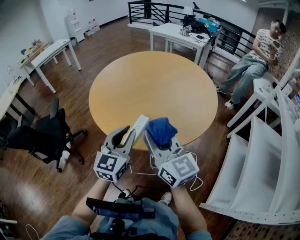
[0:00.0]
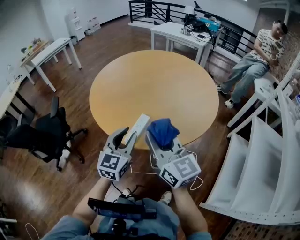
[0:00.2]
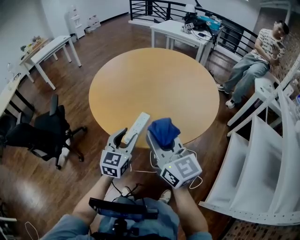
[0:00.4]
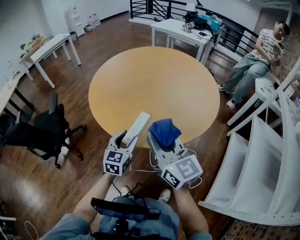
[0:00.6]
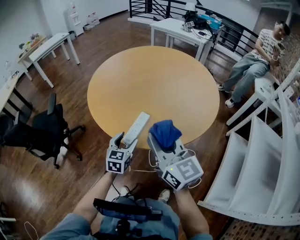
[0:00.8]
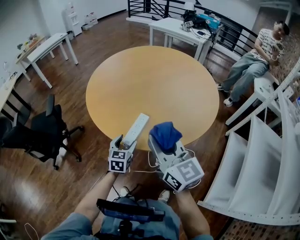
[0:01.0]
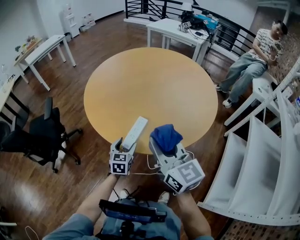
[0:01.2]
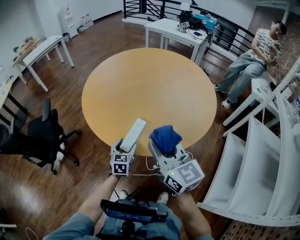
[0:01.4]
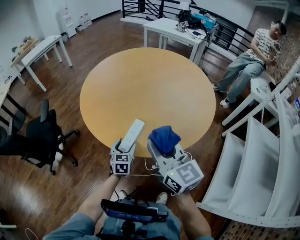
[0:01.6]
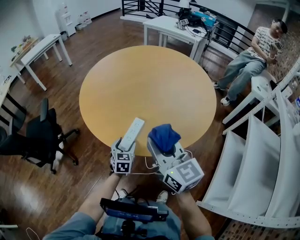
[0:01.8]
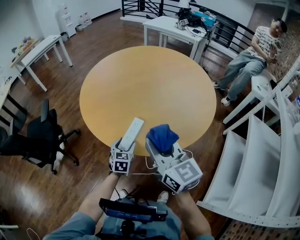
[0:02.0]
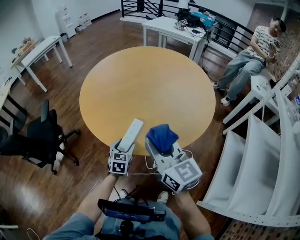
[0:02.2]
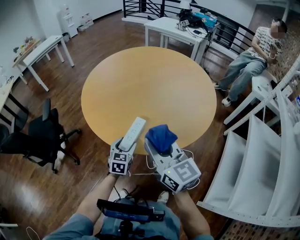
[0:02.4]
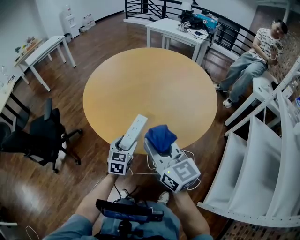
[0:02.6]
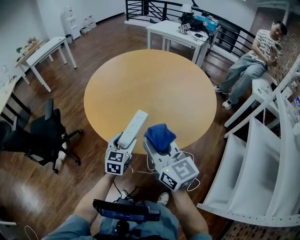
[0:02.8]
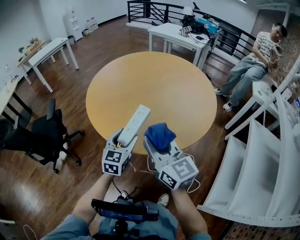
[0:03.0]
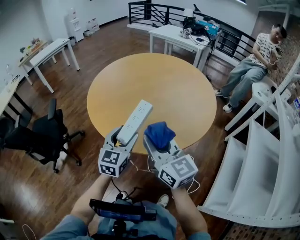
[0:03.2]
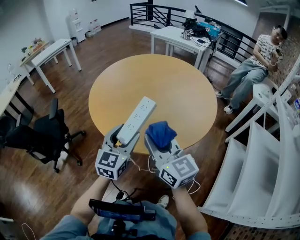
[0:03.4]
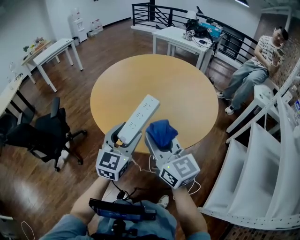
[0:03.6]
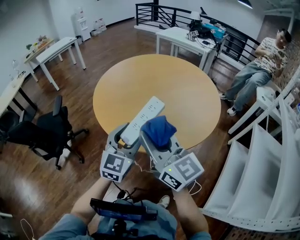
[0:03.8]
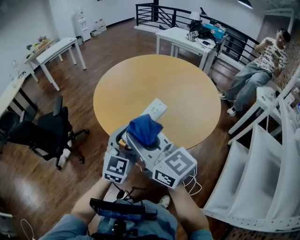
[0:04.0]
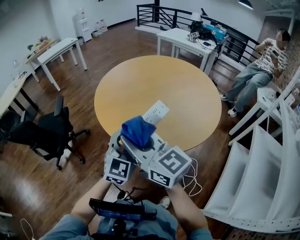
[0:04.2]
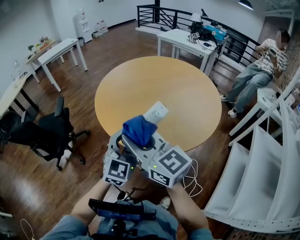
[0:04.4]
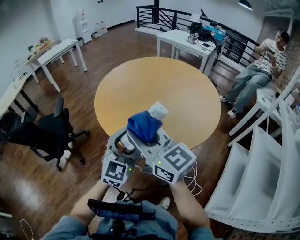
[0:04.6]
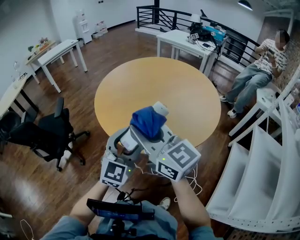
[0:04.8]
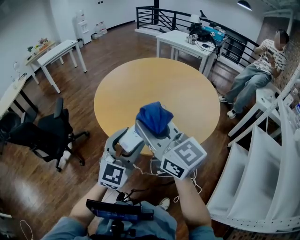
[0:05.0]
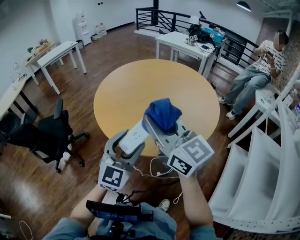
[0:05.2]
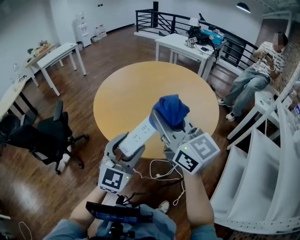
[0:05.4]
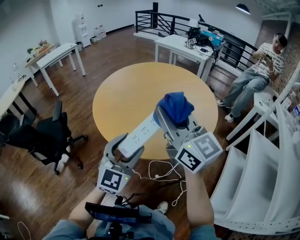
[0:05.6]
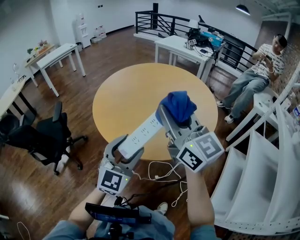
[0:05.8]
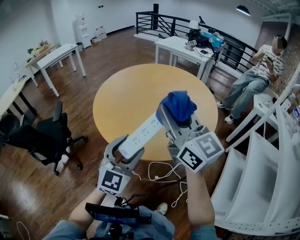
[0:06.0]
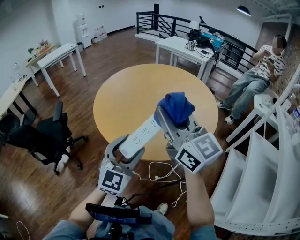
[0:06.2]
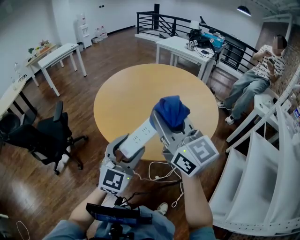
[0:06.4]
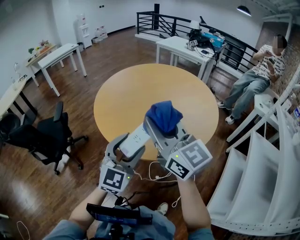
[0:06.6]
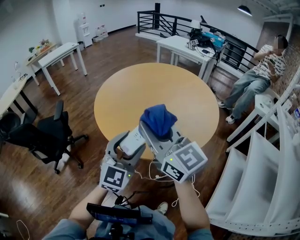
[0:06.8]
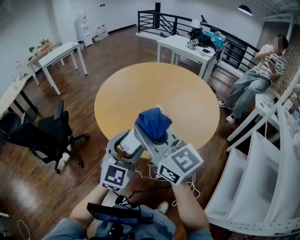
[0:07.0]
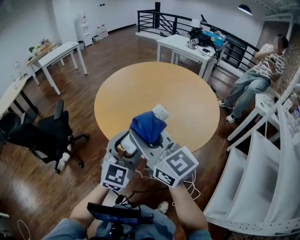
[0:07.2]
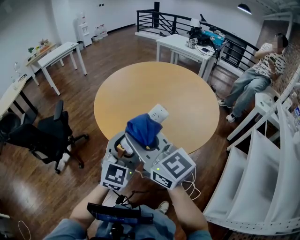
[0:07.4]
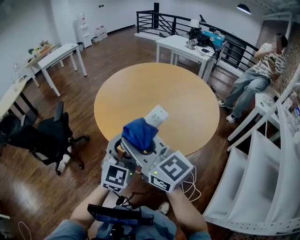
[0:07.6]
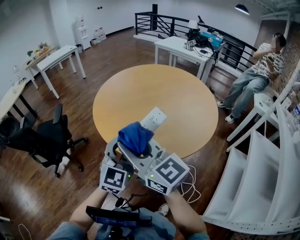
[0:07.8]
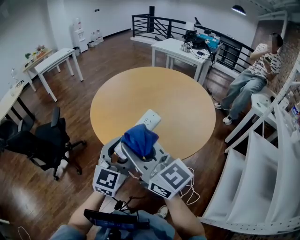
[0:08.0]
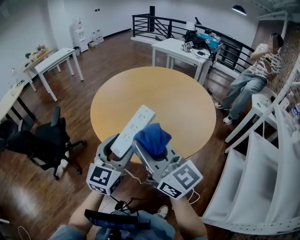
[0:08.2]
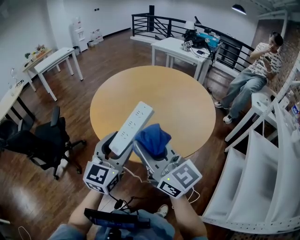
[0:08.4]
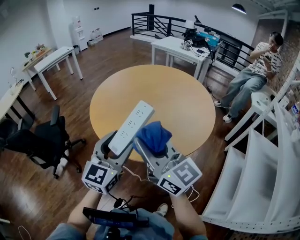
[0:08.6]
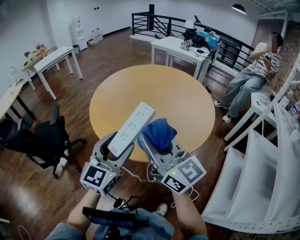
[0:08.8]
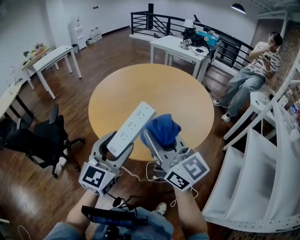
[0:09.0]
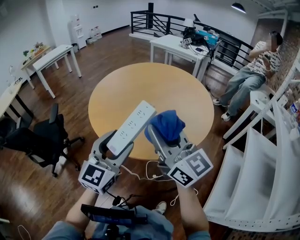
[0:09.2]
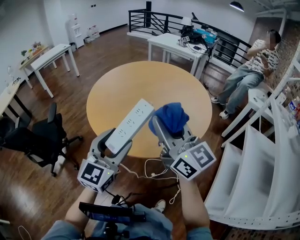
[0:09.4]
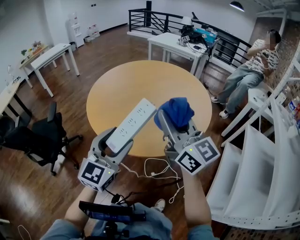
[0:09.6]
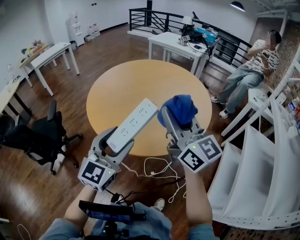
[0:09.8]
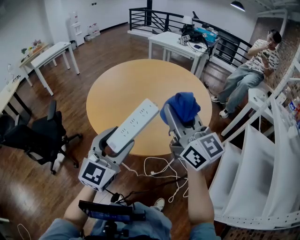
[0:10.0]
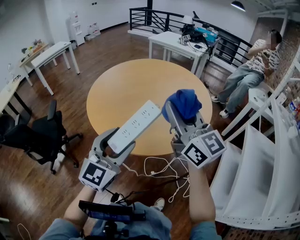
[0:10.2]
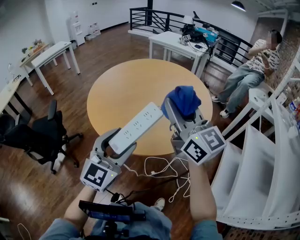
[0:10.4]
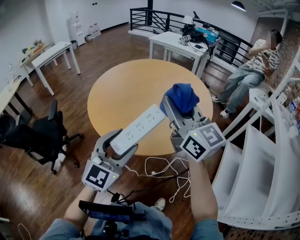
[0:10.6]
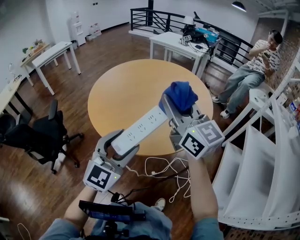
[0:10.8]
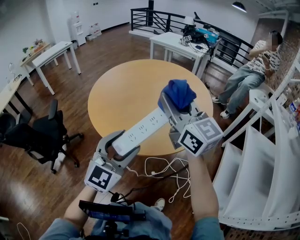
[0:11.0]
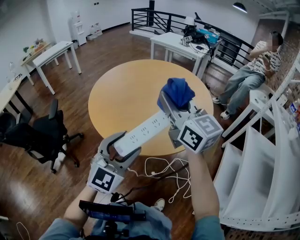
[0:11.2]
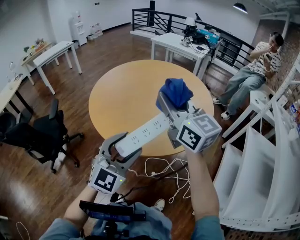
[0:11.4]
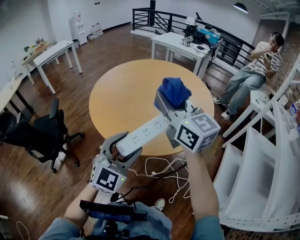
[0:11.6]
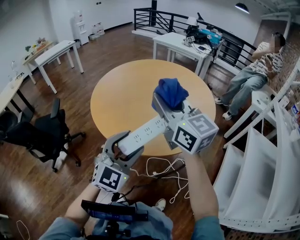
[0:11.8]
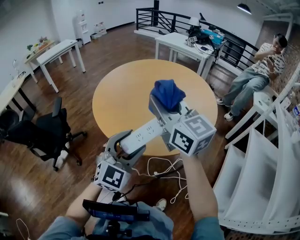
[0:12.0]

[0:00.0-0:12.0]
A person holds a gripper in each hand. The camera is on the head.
0:00.0 to 0:01.6: The left gripper heads downward, covering approximately 25 cm, turns by some 30 degrees, and opens up. Meanwhile the right gripper ends up approximately 5 cm from where it was.
0:01.6 to 0:03.0: The left gripper heads upward, covering some 15 cm.
0:03.0 to 0:04.4: The right gripper shifts about 10 cm to the left and upward; the left gripper is displaced upward and backward by approximately 15 cm, and rotates approximately 20 degrees.
0:04.4 to 0:06.0: The right gripper goes some 15 cm to the right and upward, and swivels some 20 degrees.
0:06.0 to 0:07.6: The right gripper heads to the left, downward and backward, covering about 15 cm.
0:07.6 to 0:09.0: The right gripper is displaced to the right by approximately 10 cm.
0:09.0 to 0:10.4: The right gripper heads to the right, covering approximately 5 cm.
0:10.4 to 0:12.0: The right gripper is displaced to the left by approximately 5 cm.

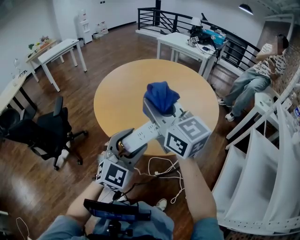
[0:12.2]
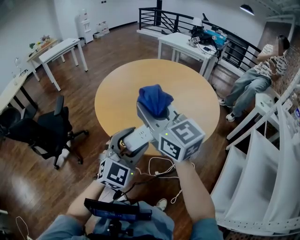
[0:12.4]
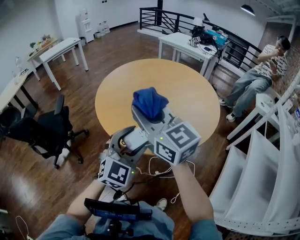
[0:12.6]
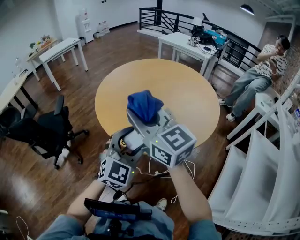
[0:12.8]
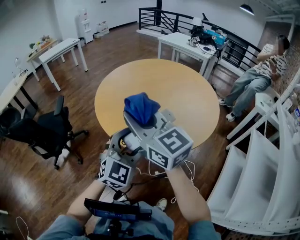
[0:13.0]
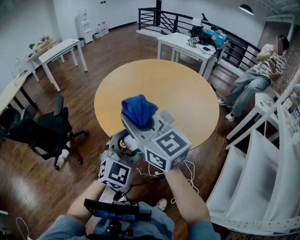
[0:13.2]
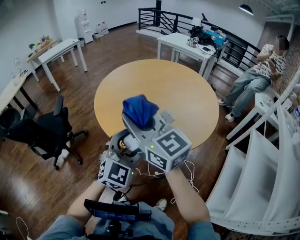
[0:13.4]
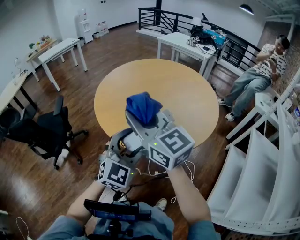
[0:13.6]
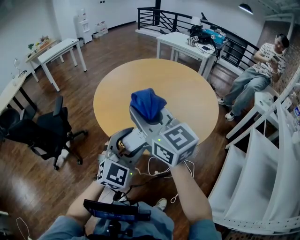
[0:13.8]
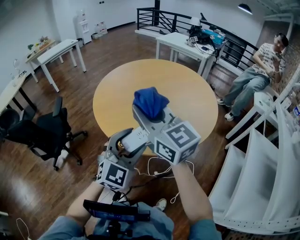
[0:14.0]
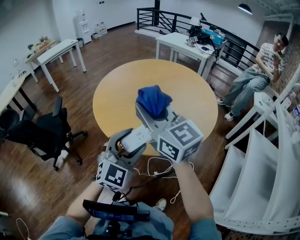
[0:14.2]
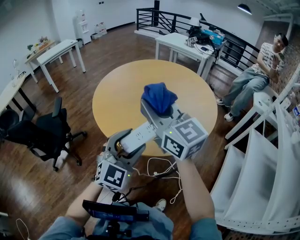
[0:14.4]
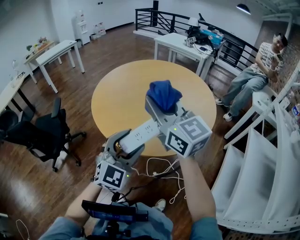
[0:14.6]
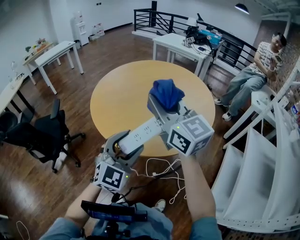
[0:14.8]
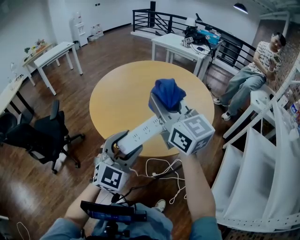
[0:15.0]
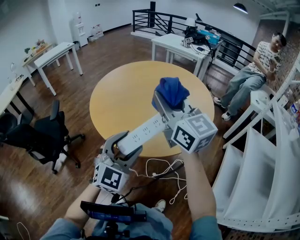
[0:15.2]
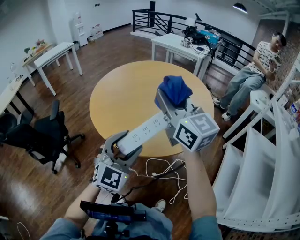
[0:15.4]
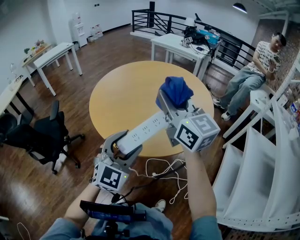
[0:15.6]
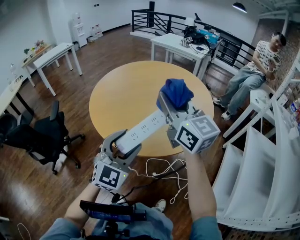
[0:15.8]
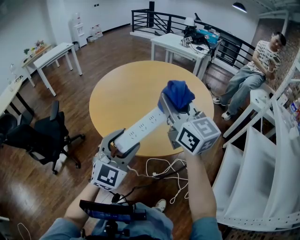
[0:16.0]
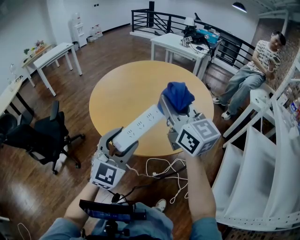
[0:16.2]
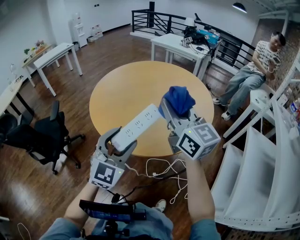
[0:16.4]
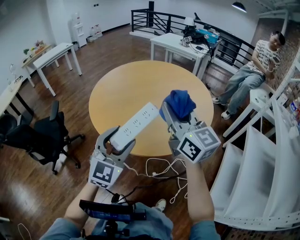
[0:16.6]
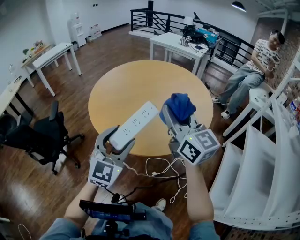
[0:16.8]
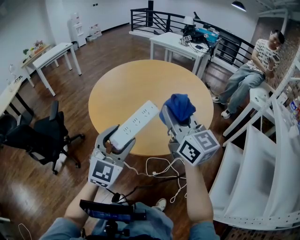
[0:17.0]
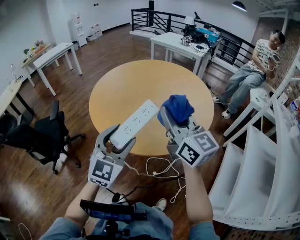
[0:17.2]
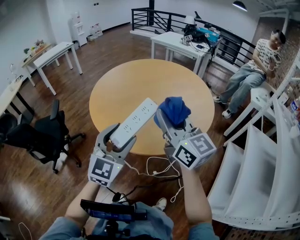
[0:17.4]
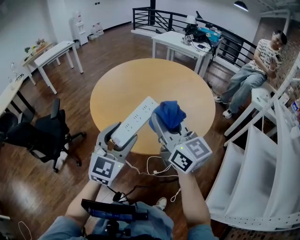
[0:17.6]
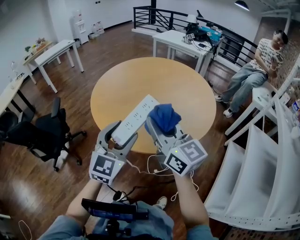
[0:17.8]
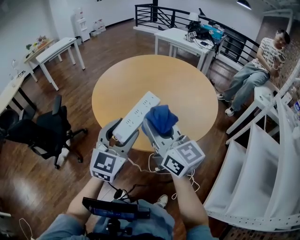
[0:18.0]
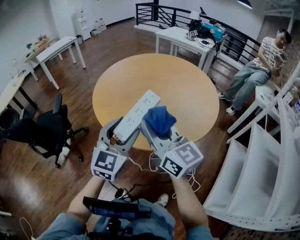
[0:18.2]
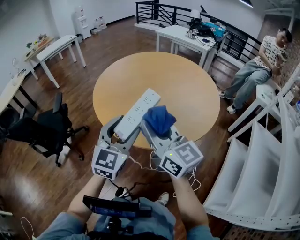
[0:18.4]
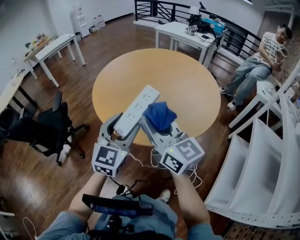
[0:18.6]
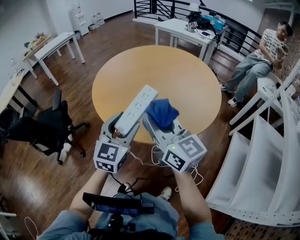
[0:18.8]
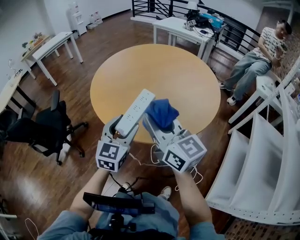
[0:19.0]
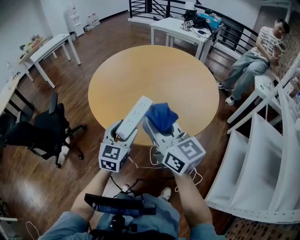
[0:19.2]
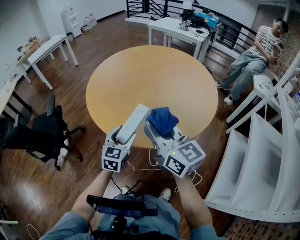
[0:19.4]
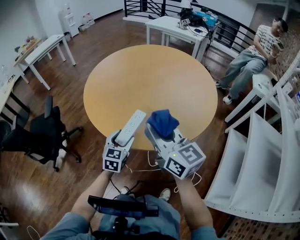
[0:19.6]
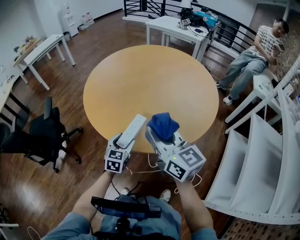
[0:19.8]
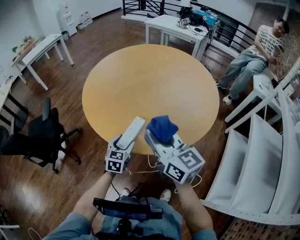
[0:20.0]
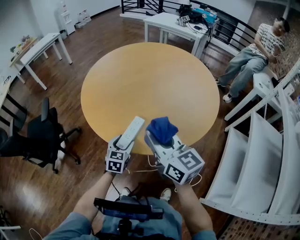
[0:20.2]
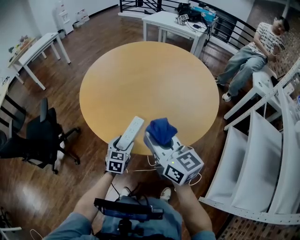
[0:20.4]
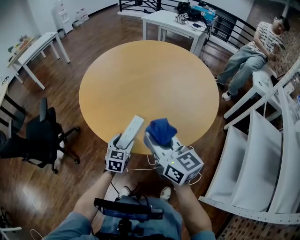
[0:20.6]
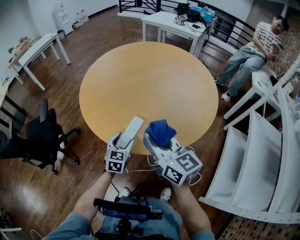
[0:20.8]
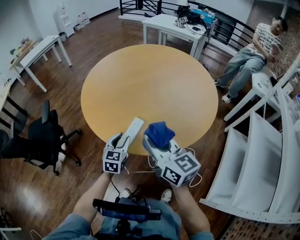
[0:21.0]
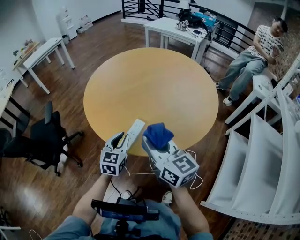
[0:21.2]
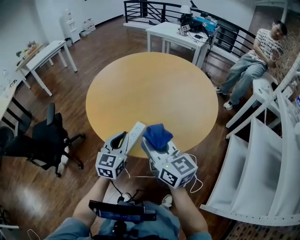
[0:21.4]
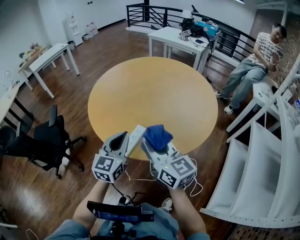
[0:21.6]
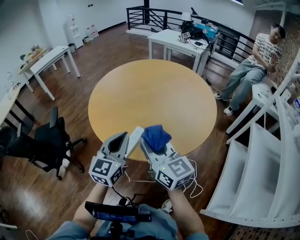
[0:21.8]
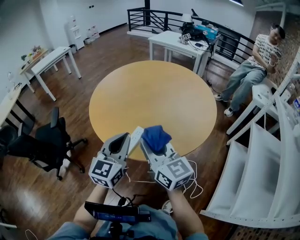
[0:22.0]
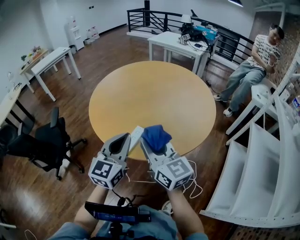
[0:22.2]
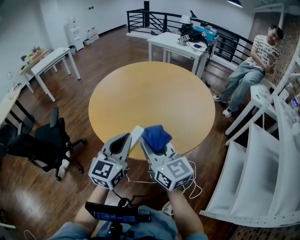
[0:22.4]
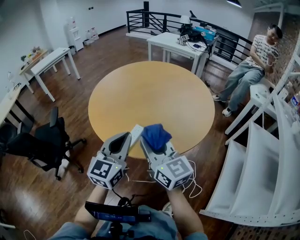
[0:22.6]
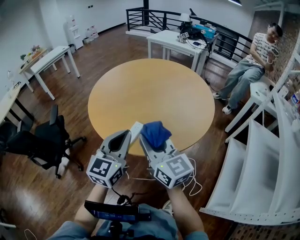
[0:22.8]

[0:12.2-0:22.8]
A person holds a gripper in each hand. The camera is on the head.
0:13.8 to 0:15.2: The right gripper shifts roughly 10 cm to the right.
0:15.2 to 0:16.8: The right gripper ends up approximately 5 cm from where it was.
0:16.8 to 0:18.2: The right gripper heads to the left, covering about 10 cm.
0:18.2 to 0:19.8: The right gripper heads downward, covering roughly 5 cm. The left gripper moves downward, some 25 cm, and swivels approximately 30 degrees.
0:19.8 to 0:21.2: The left gripper shifts roughly 5 cm upward, and closes.
0:21.2 to 0:22.8: The left gripper goes some 20 cm upward and backward; the right gripper ends up some 5 cm from where it was.

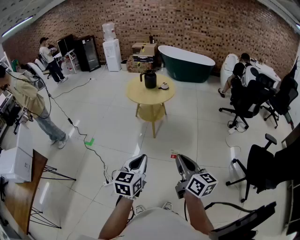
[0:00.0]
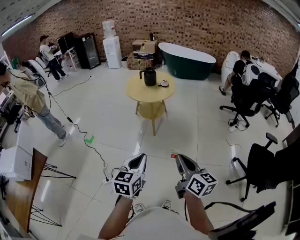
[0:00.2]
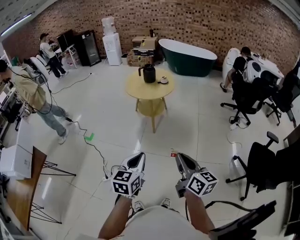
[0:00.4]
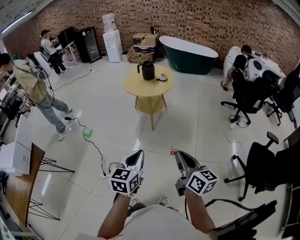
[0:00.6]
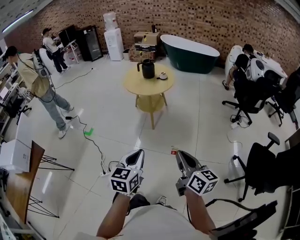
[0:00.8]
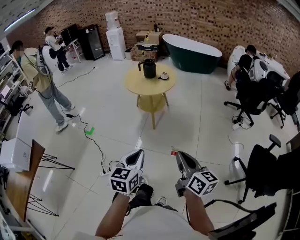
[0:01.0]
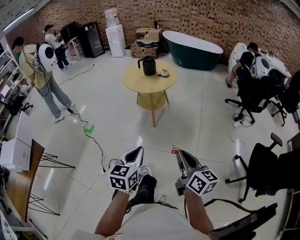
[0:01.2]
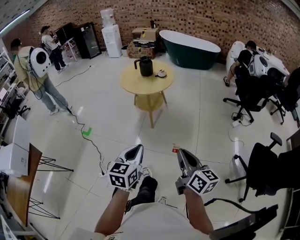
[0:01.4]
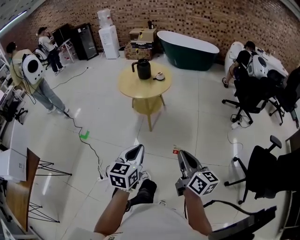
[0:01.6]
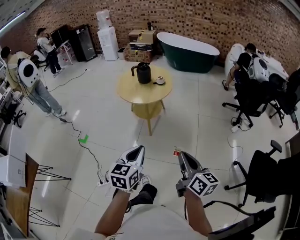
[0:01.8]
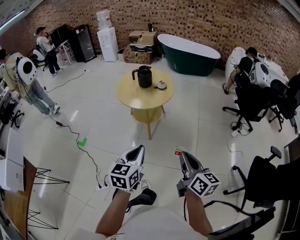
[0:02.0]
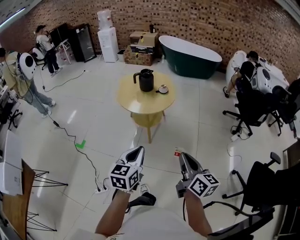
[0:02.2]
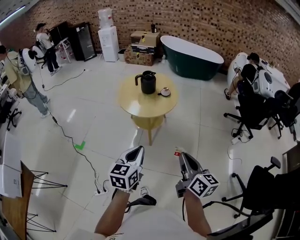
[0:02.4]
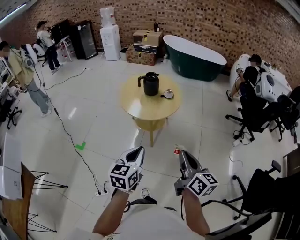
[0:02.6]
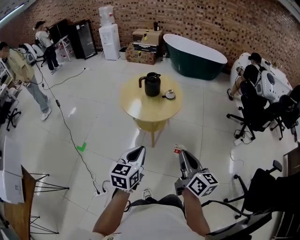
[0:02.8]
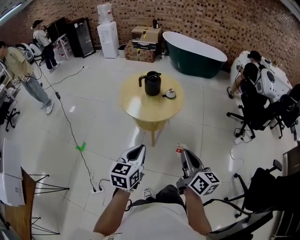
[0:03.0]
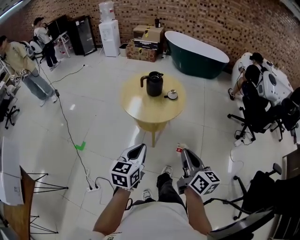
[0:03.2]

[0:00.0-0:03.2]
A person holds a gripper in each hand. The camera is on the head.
0:00.0 to 0:01.6: Both grippers move forward and to the right, roughly 15 cm.
0:01.6 to 0:03.2: Both grippers move forward, approximately 25 cm.
